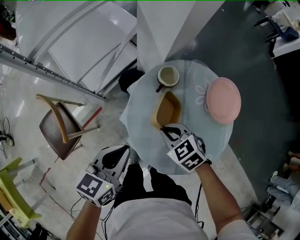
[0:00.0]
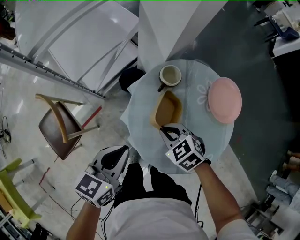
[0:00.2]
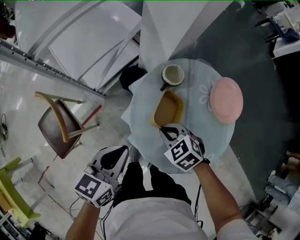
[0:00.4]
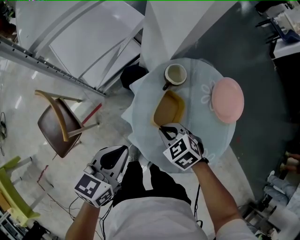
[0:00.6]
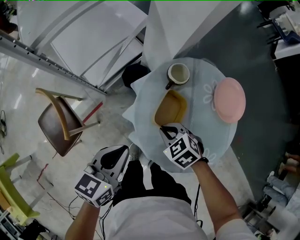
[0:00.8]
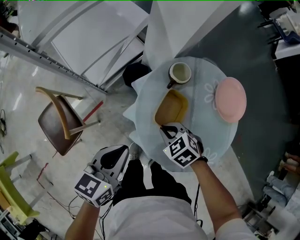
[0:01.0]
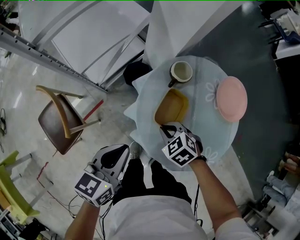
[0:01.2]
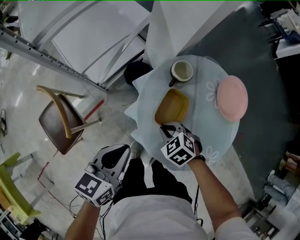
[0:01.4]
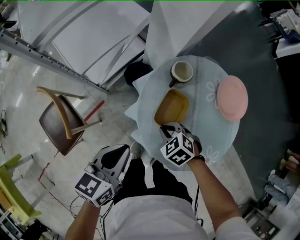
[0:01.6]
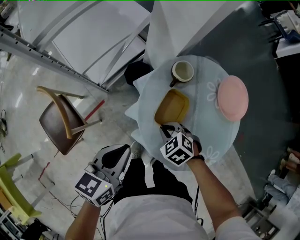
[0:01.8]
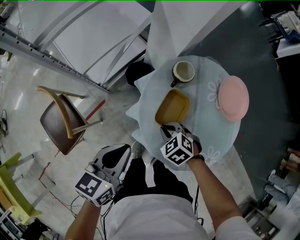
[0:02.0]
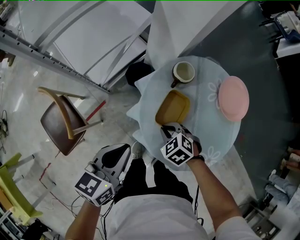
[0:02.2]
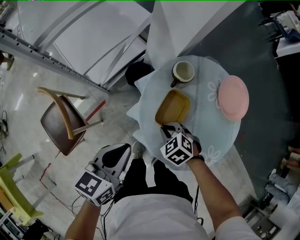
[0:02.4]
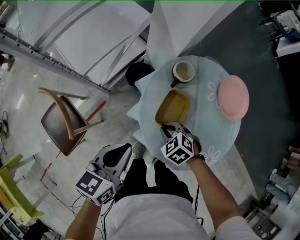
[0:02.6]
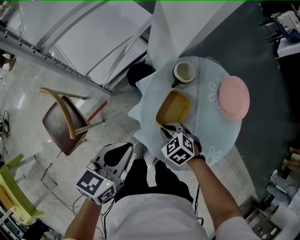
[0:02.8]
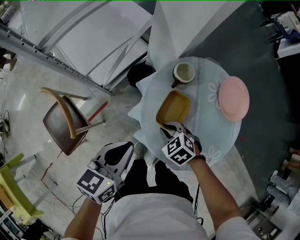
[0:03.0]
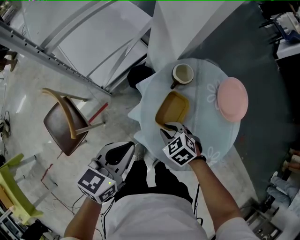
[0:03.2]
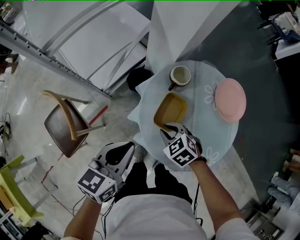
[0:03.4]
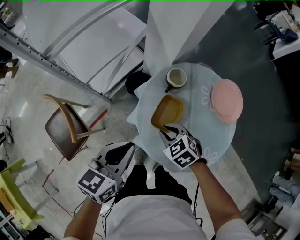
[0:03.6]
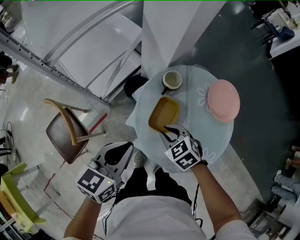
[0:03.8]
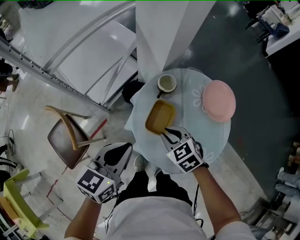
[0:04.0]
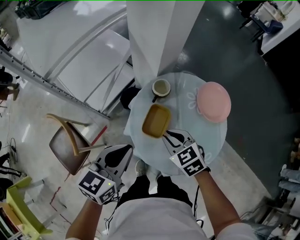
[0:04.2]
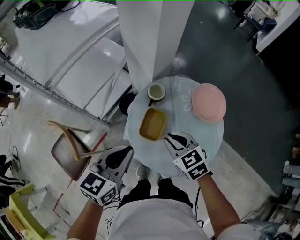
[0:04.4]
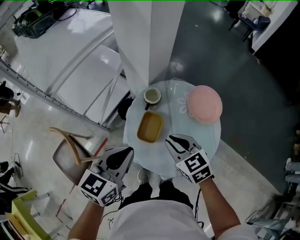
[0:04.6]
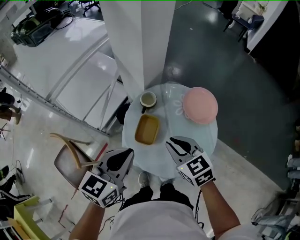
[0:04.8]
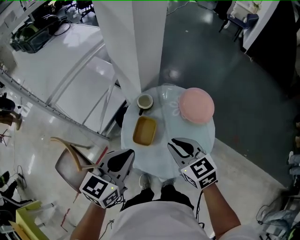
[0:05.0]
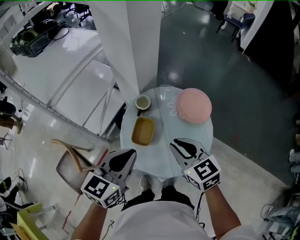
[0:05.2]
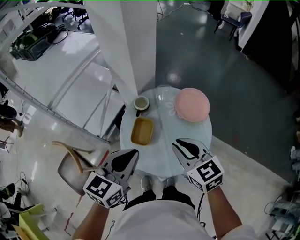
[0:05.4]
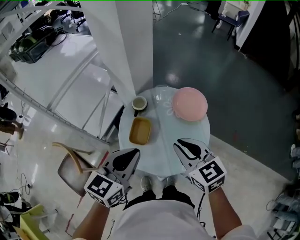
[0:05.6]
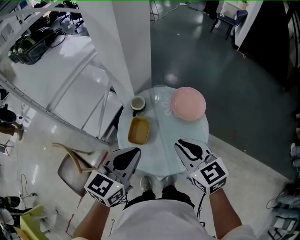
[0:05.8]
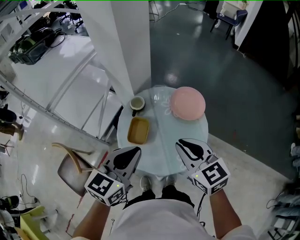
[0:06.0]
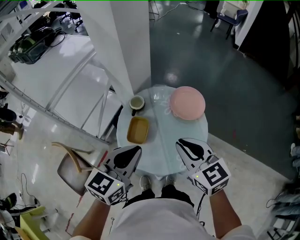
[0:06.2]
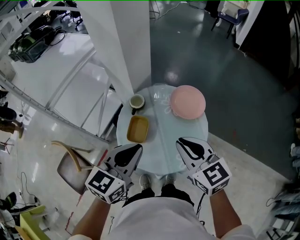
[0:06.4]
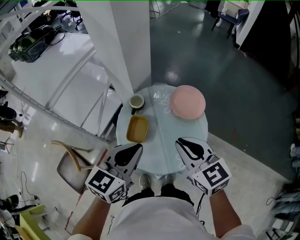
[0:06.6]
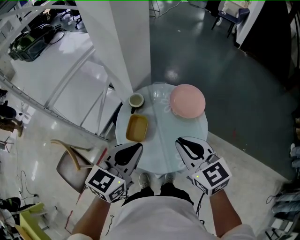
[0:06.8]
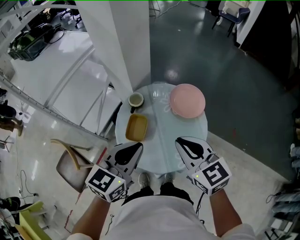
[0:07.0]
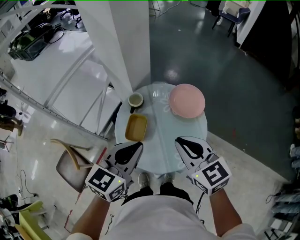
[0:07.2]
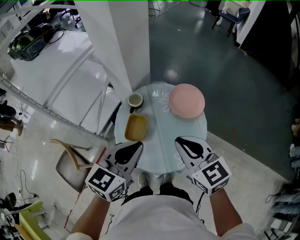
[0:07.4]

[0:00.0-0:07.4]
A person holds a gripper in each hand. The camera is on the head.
0:00.0 to 0:01.4: The left gripper shifts by approximately 5 cm, while the right gripper heads downward, covering some 5 cm.
0:01.4 to 0:03.0: The grippers stay close to where they were, moving slightly.
0:03.0 to 0:04.4: The right gripper goes roughly 20 cm upward and to the right, and swivels some 30 degrees, while the left gripper is displaced upward and to the right by approximately 10 cm.
0:04.4 to 0:06.0: The right gripper is displaced upward, to the right and backward by roughly 20 cm, and rotates some 20 degrees. The left gripper goes about 15 cm to the right and upward.
0:06.0 to 0:07.4: The grippers move only a little.

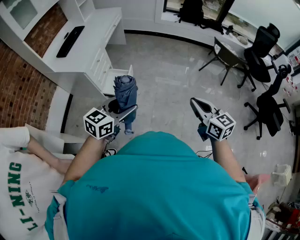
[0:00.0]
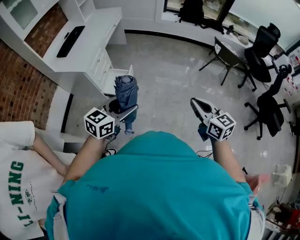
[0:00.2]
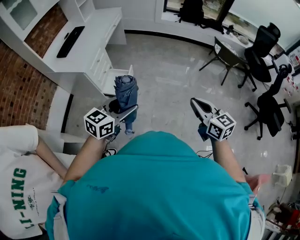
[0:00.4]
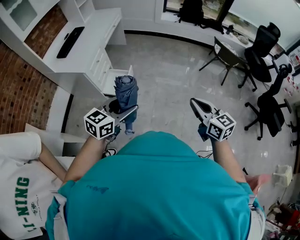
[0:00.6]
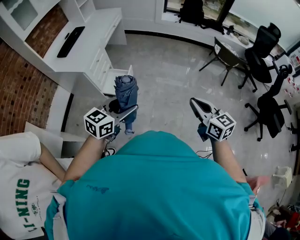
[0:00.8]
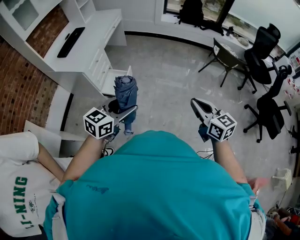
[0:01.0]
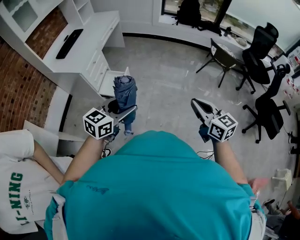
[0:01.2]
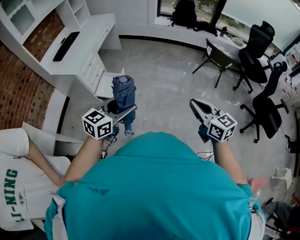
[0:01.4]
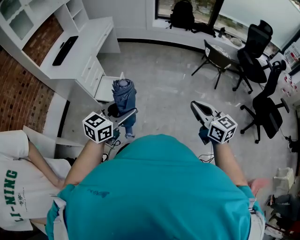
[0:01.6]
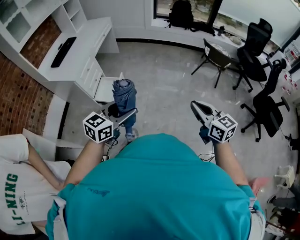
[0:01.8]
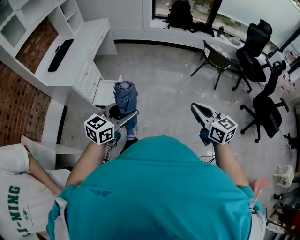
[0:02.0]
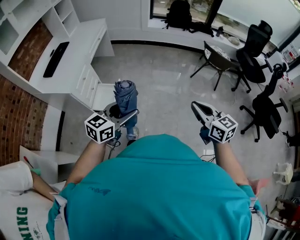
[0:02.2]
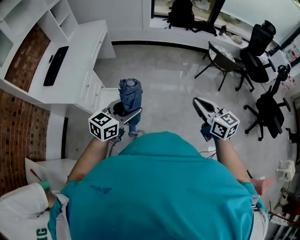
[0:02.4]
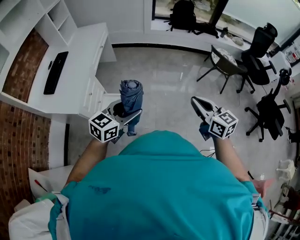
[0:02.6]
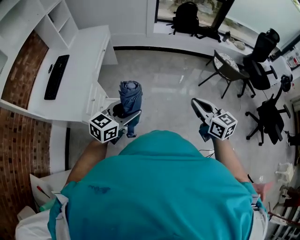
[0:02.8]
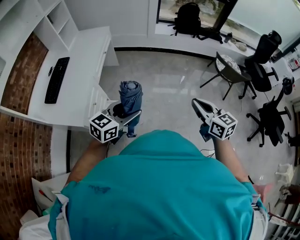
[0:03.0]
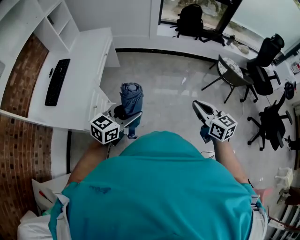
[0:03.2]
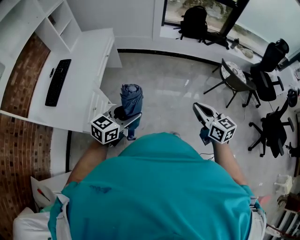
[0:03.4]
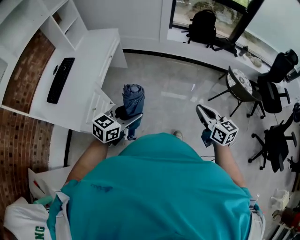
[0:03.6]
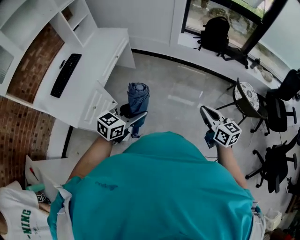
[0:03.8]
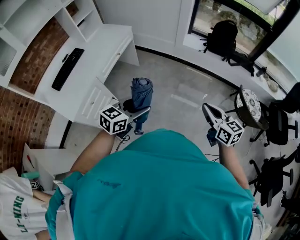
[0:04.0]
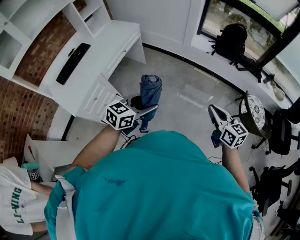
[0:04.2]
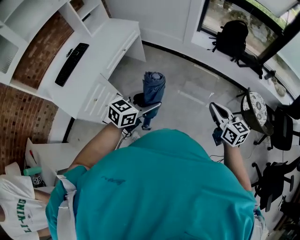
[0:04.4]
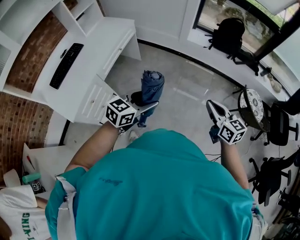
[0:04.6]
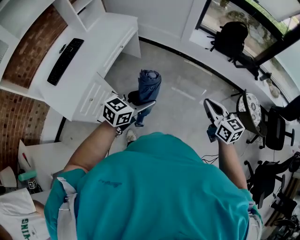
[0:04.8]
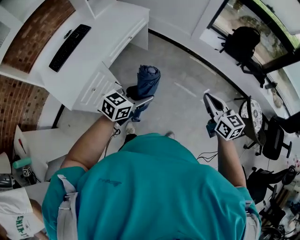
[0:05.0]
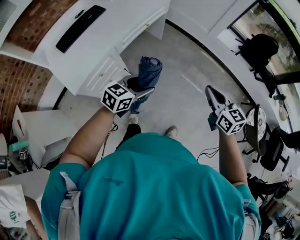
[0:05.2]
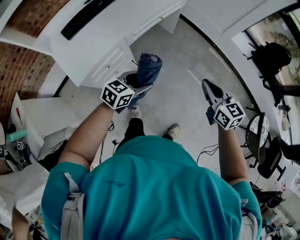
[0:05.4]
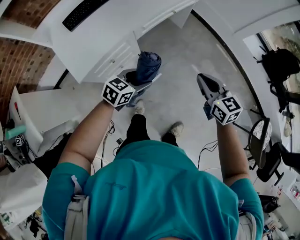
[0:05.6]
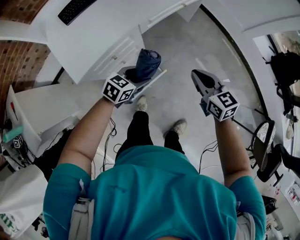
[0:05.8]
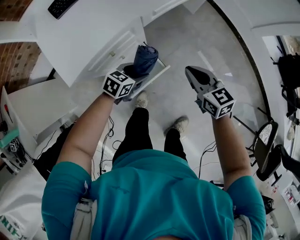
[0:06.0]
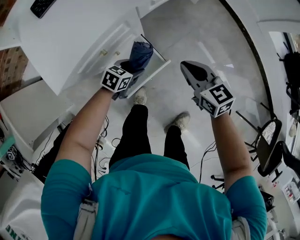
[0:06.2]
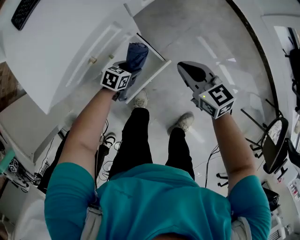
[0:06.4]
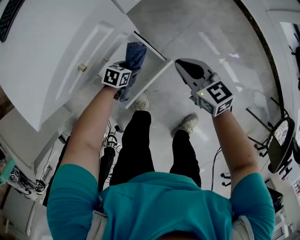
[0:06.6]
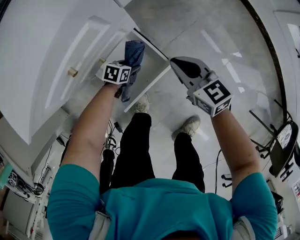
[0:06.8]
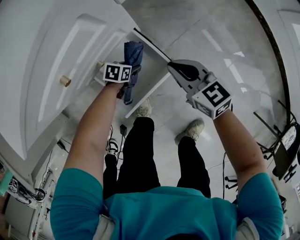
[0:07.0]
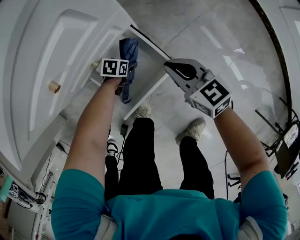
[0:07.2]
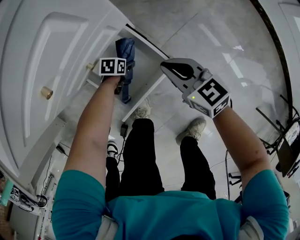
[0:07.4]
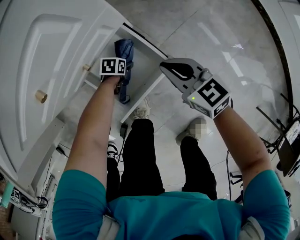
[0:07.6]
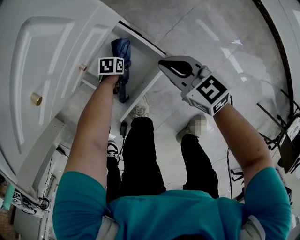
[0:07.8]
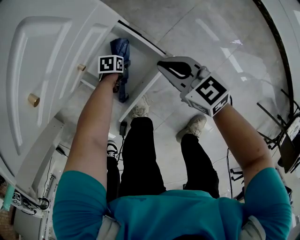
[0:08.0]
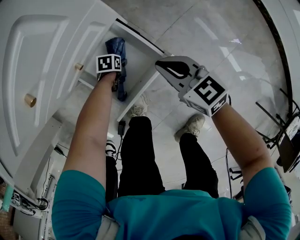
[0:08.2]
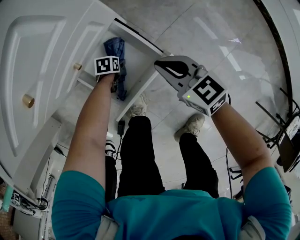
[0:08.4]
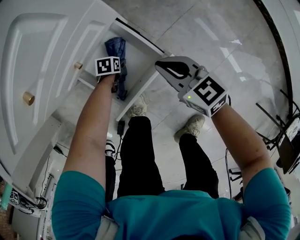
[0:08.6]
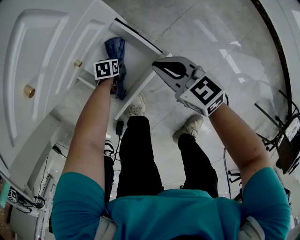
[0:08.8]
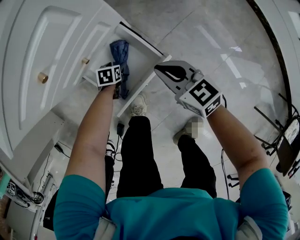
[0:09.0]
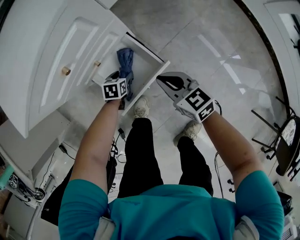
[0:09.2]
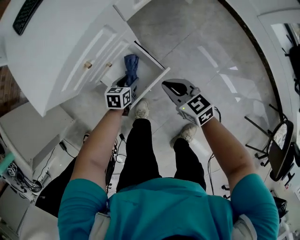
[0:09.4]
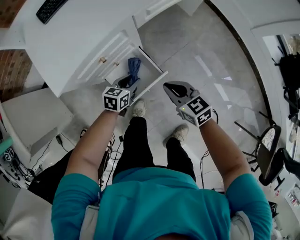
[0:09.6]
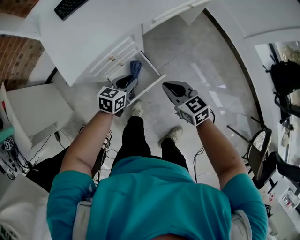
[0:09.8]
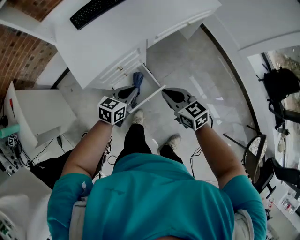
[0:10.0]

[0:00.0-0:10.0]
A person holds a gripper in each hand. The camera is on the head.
0:00.0 to 0:01.4: The two grippers go roughly 10 cm to the right.
0:01.4 to 0:02.8: Both grippers move forward and to the left, roughly 35 cm.
0:02.8 to 0:04.2: Both grippers move forward and to the right, about 30 cm.
0:04.2 to 0:05.8: The left gripper shifts by approximately 40 cm, and rotates approximately 30 degrees, while the right gripper changes place by roughly 50 cm, and turns by some 40 degrees.
0:05.8 to 0:07.2: The grippers both shift downward by some 40 cm. The left gripper turns by about 40 degrees.
0:07.2 to 0:08.6: The left gripper moves downward, approximately 5 cm.
0:08.6 to 0:10.0: The left gripper travels upward by some 60 cm, points its fingers some 40 degrees further upward, and closes, while the right gripper shifts approximately 35 cm upward.

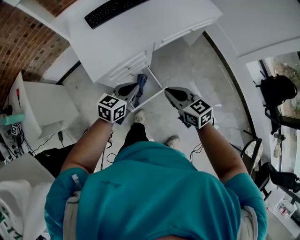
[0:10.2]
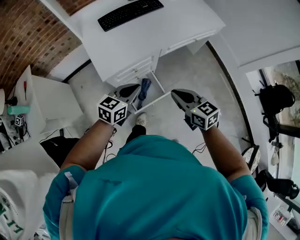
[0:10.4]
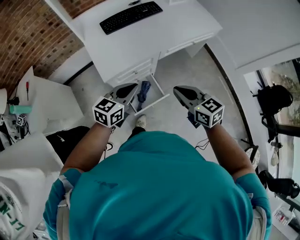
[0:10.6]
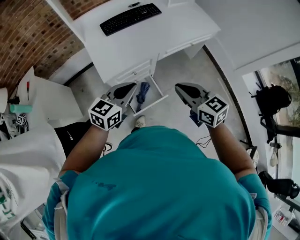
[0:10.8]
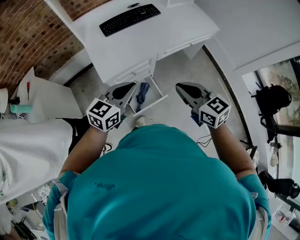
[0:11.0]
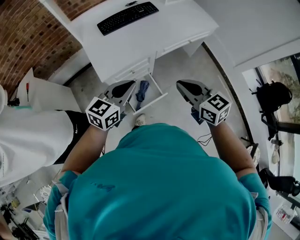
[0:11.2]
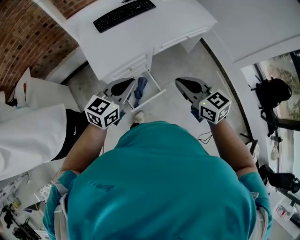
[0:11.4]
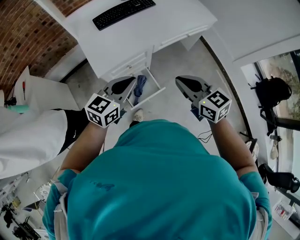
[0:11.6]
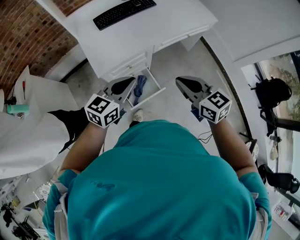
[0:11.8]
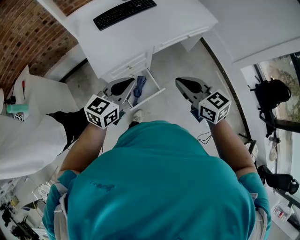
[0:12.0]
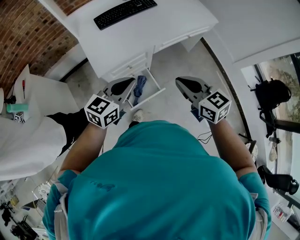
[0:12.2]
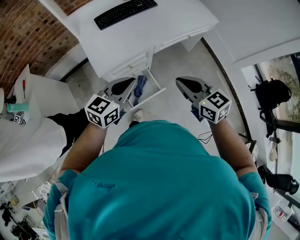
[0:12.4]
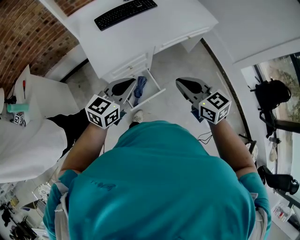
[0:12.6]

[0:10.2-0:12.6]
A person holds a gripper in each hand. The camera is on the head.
0:10.2 to 0:11.4: Both grippers travel together upward, some 15 cm.
0:11.4 to 0:12.6: Neither gripper changes place.

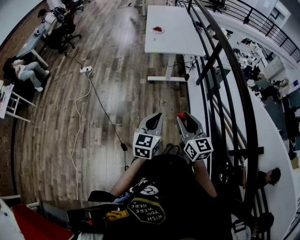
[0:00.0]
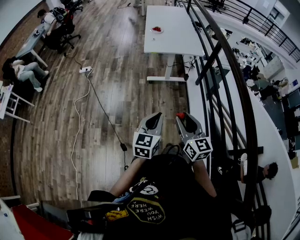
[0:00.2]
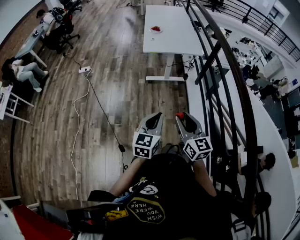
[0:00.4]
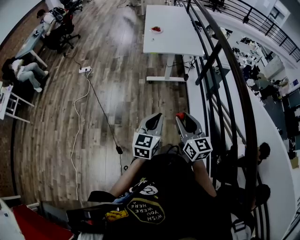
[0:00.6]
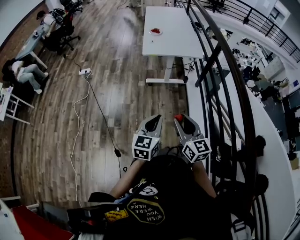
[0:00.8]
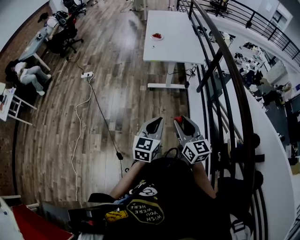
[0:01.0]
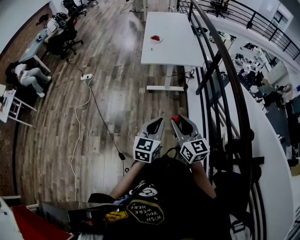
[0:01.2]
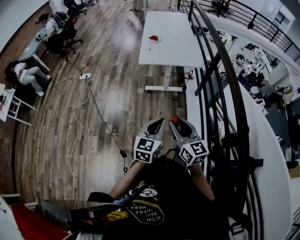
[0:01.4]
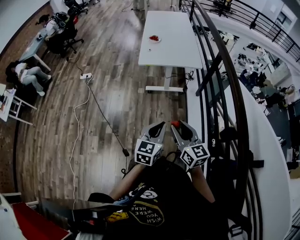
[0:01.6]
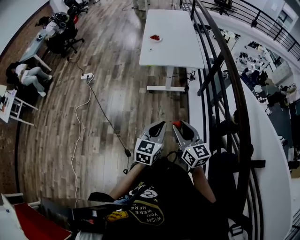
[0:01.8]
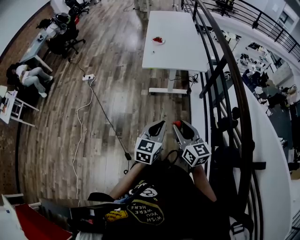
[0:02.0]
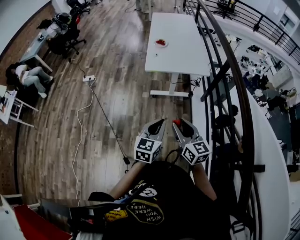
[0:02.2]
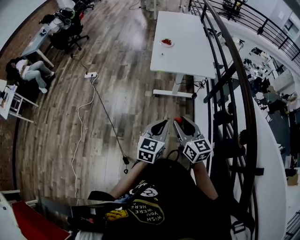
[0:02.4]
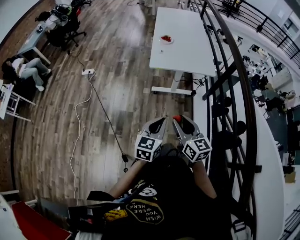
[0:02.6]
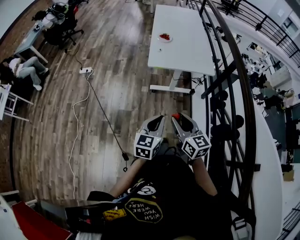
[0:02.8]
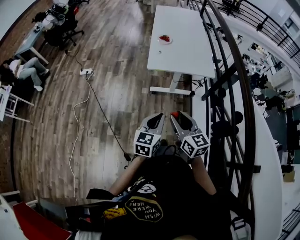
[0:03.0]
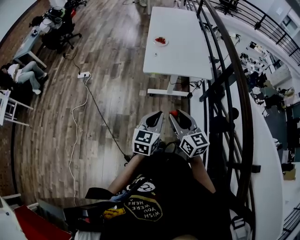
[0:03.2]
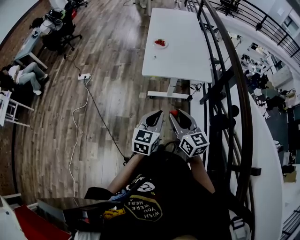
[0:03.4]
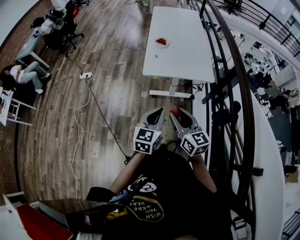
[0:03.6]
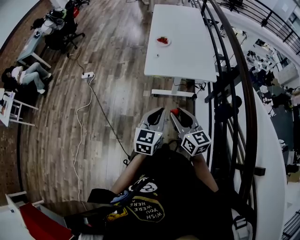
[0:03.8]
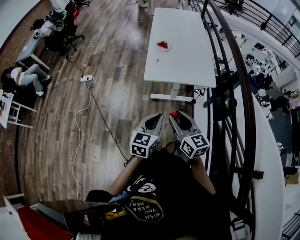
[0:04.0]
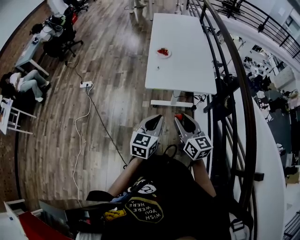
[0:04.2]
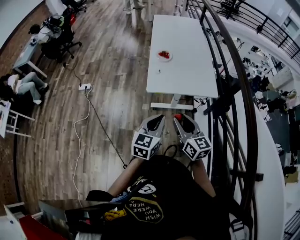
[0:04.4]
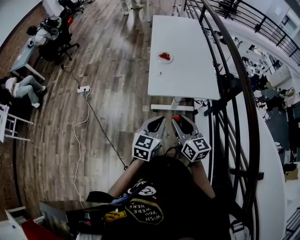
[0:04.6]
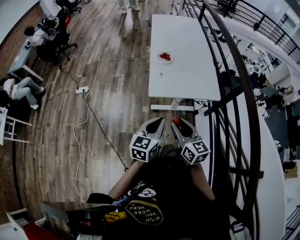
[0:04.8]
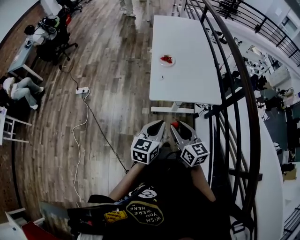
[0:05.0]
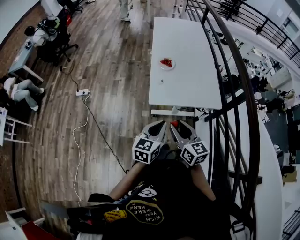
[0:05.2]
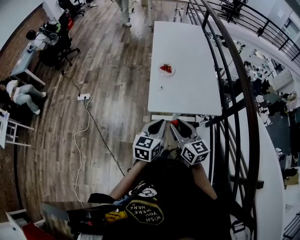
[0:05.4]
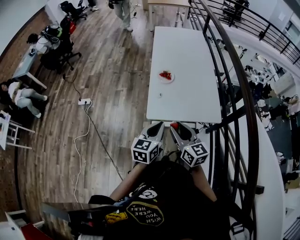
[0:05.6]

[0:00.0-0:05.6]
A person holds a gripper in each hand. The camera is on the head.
0:00.0 to 0:01.4: The two grippers go approximately 10 cm forward and to the right.
0:01.4 to 0:02.8: Both grippers move forward and to the left, some 15 cm.
0:02.8 to 0:04.2: The grippers both shift forward by about 15 cm.
0:04.2 to 0:05.6: Both grippers travel together forward, roughly 20 cm.
